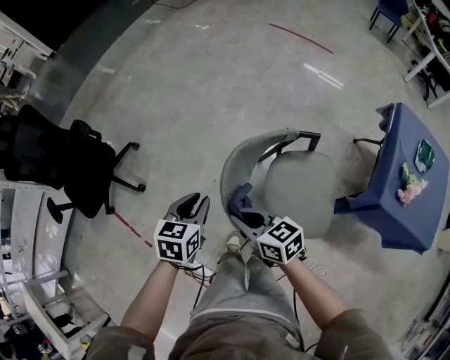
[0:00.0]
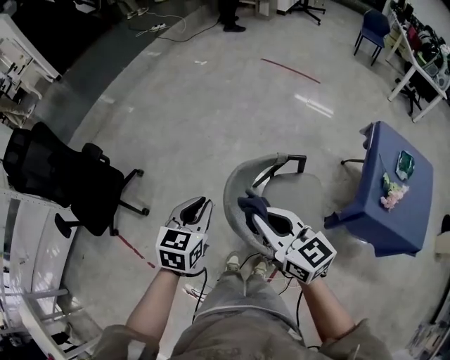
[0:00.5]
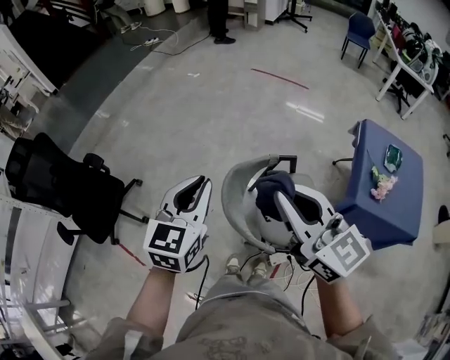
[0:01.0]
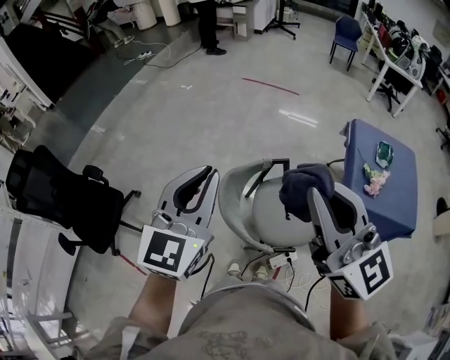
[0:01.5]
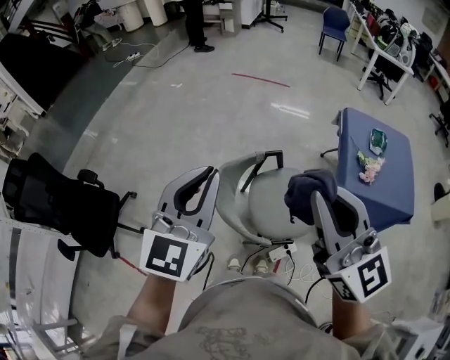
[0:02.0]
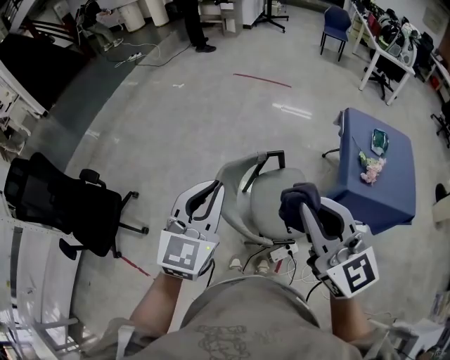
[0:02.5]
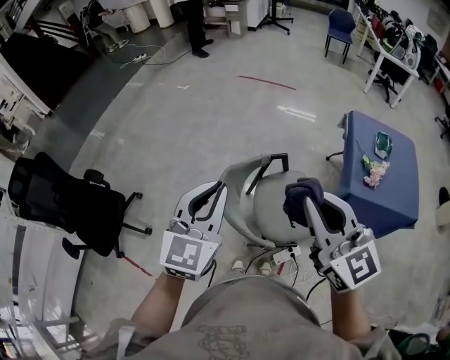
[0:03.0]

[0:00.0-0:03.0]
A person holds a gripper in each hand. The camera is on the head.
0:00.0 to 0:01.5: Both grippers move upward, about 40 cm. The right gripper points its fingers some 30 degrees further upward. The left gripper points its fingers roughly 40 degrees further upward.
0:01.5 to 0:03.0: The two grippers go some 5 cm downward.

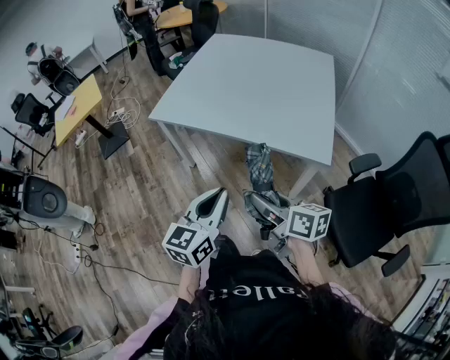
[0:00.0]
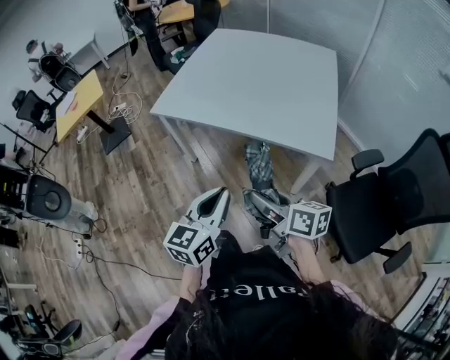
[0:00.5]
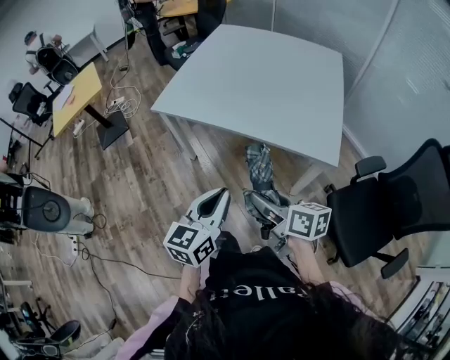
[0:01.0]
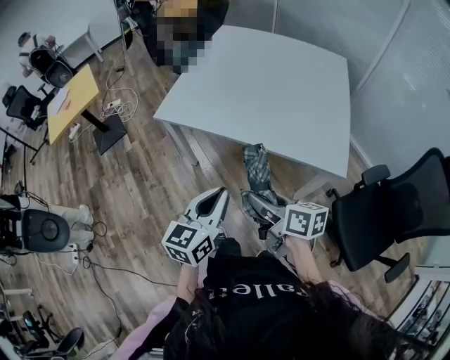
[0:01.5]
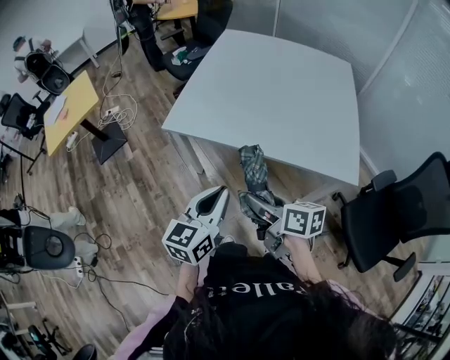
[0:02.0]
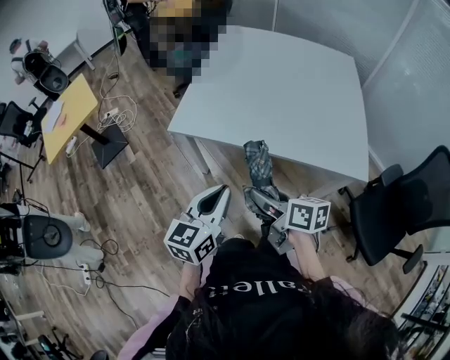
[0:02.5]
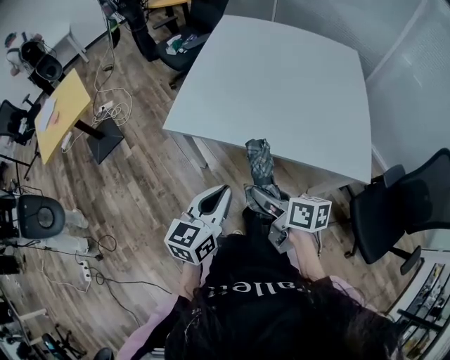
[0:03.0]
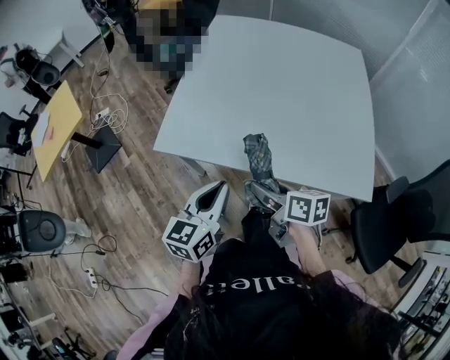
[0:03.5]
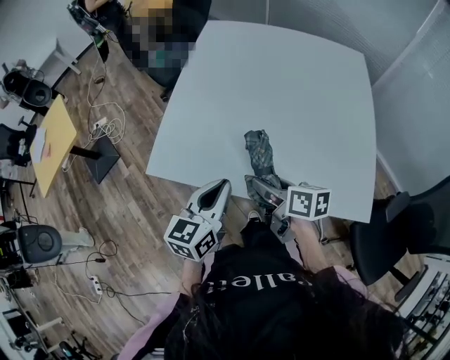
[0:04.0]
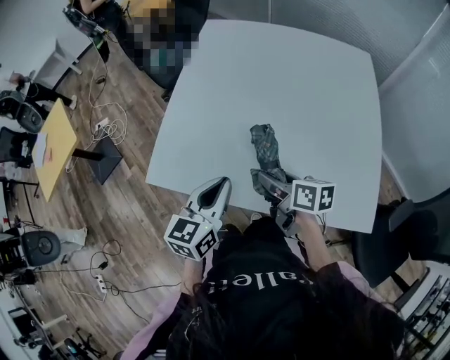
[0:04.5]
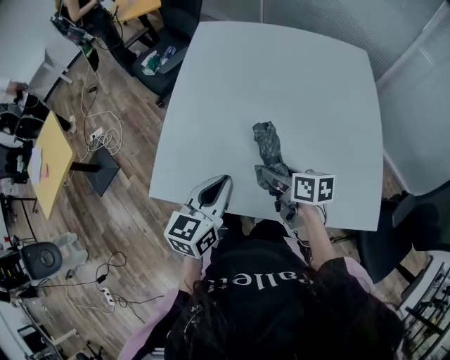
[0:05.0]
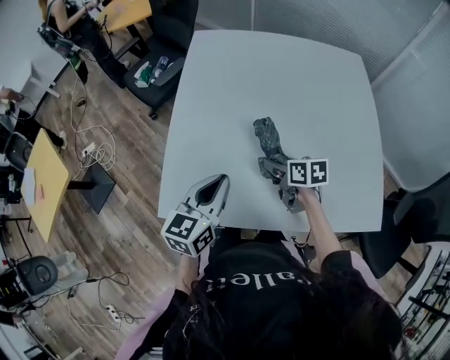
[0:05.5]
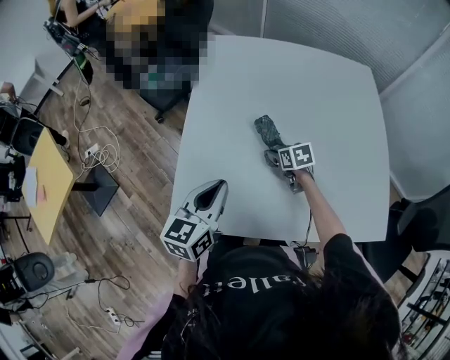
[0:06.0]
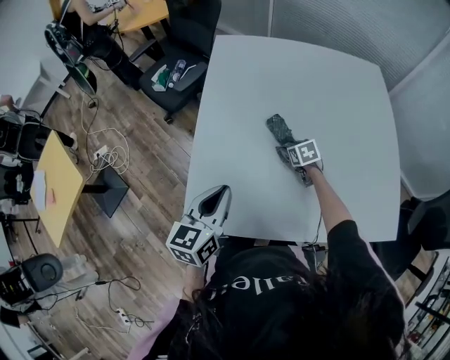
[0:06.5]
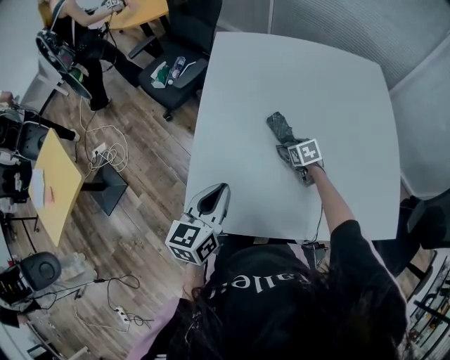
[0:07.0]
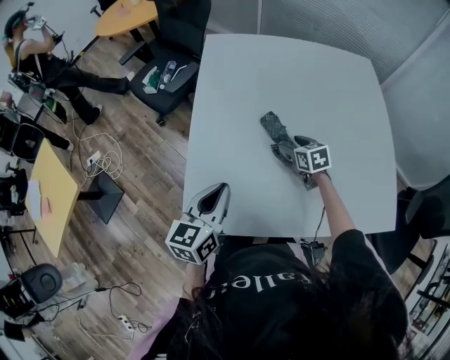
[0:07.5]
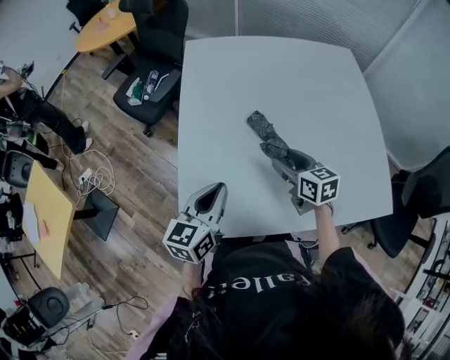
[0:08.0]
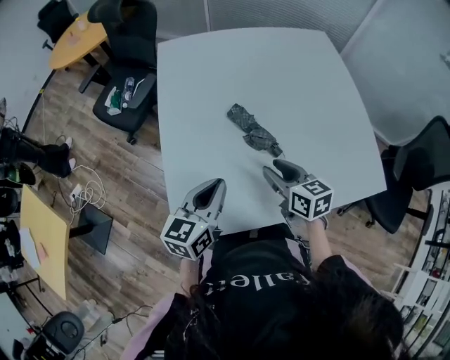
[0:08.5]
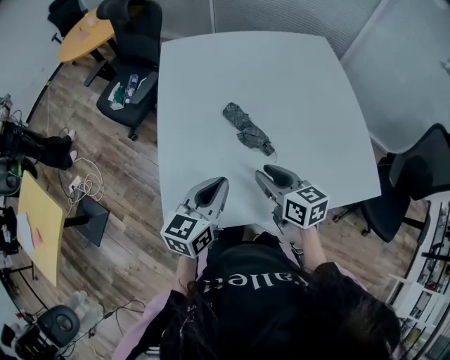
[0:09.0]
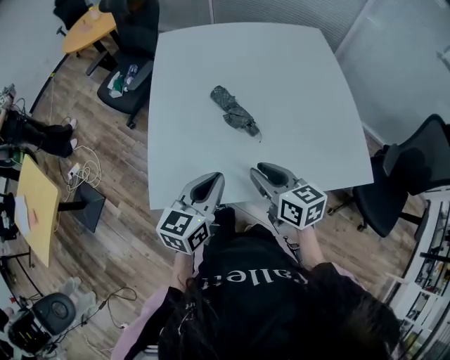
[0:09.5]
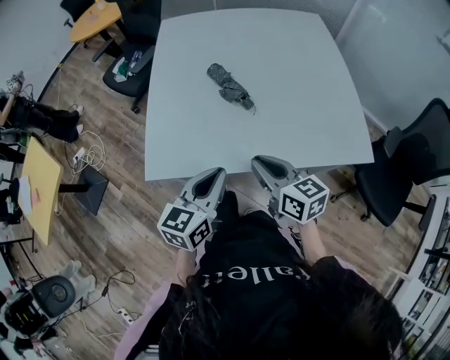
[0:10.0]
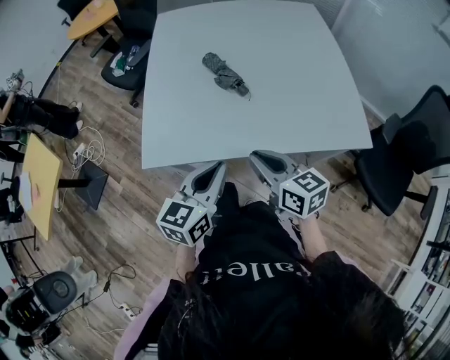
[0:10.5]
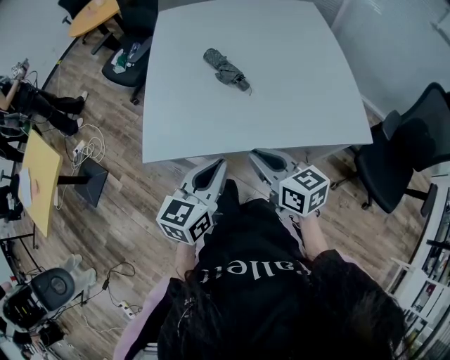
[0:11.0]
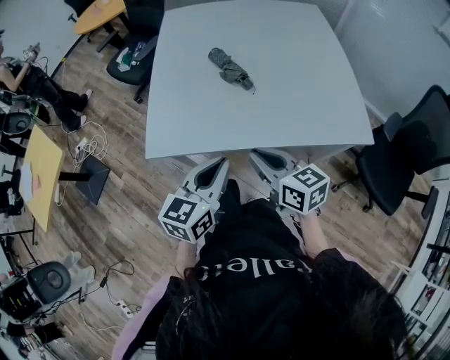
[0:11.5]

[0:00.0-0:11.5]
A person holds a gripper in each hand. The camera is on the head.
0:00.0 to 0:02.0: The left gripper is displaced forward and to the left by about 20 cm. Meanwhile the right gripper is displaced to the left and forward by about 20 cm.
0:02.0 to 0:04.0: Both grippers travel together forward, approximately 25 cm.
0:04.0 to 0:06.0: The right gripper shifts roughly 30 cm forward and downward, and changes its angle by approximately 40 degrees, while the left gripper is displaced forward and to the left by approximately 20 cm.
0:06.0 to 0:07.5: The grippers move only a little.
0:07.5 to 0:09.5: The right gripper travels backward and upward by approximately 30 cm, turns by some 30 degrees, and closes; the left gripper travels to the right and backward by some 15 cm.
0:09.5 to 0:11.5: The two grippers go roughly 15 cm backward.

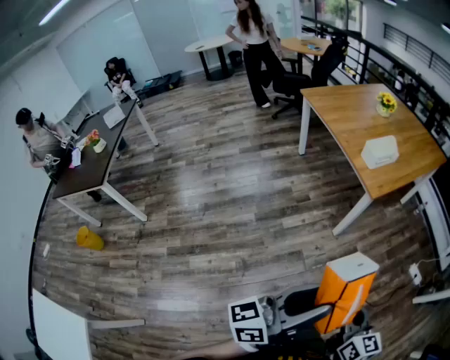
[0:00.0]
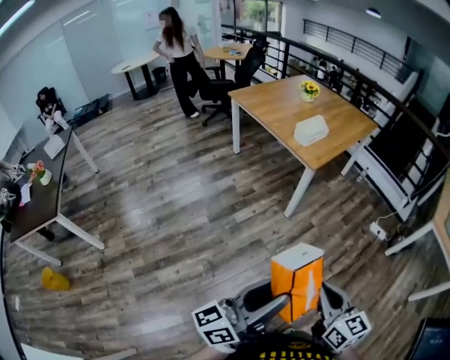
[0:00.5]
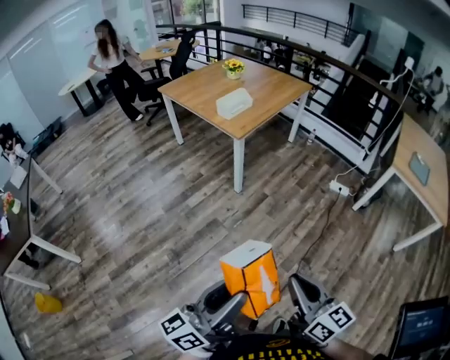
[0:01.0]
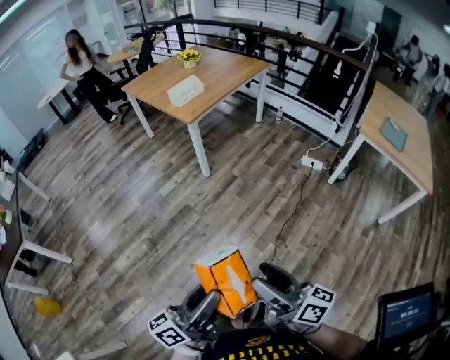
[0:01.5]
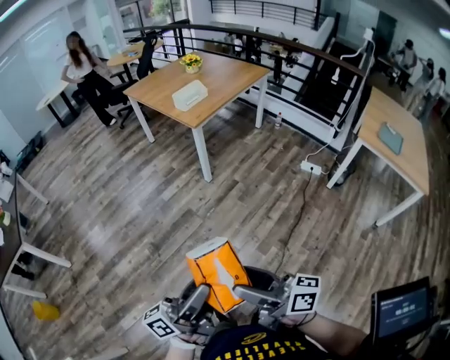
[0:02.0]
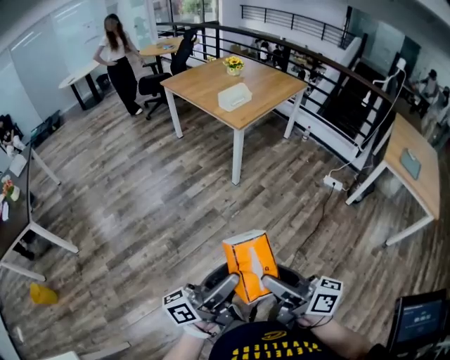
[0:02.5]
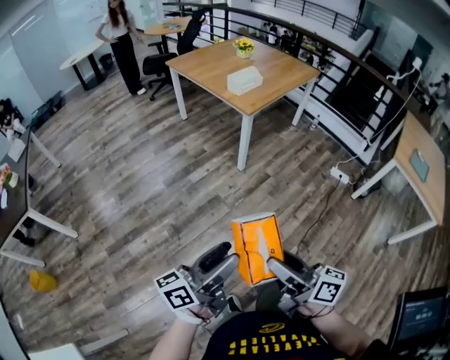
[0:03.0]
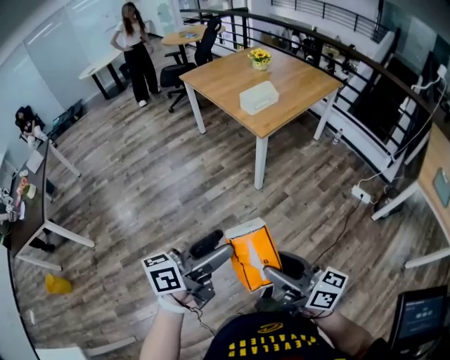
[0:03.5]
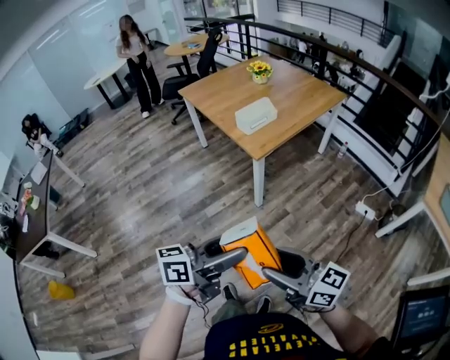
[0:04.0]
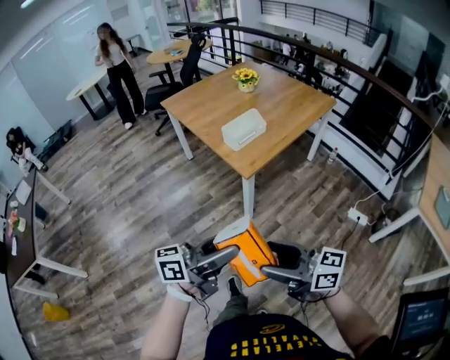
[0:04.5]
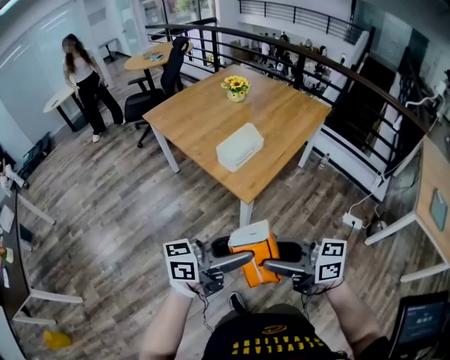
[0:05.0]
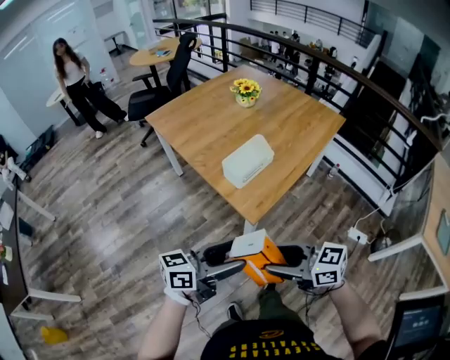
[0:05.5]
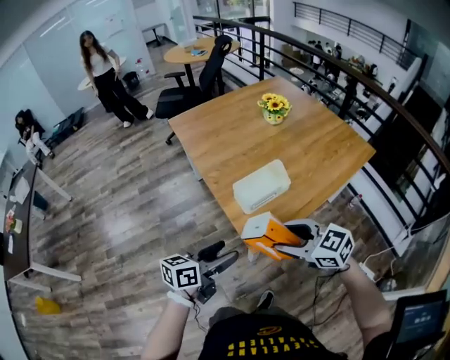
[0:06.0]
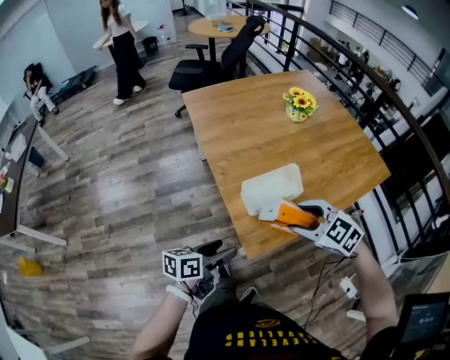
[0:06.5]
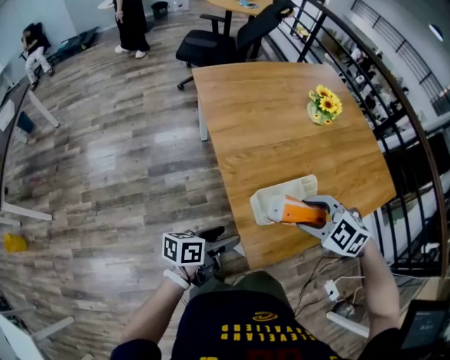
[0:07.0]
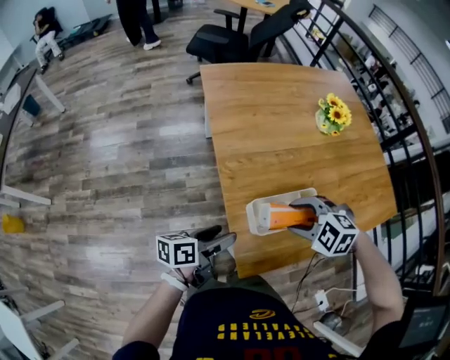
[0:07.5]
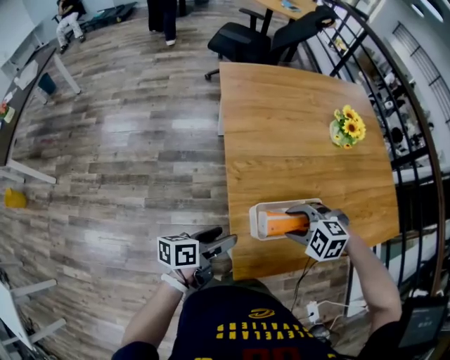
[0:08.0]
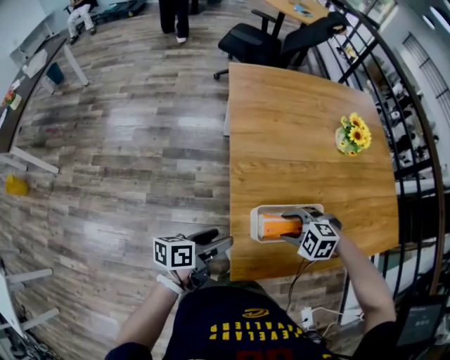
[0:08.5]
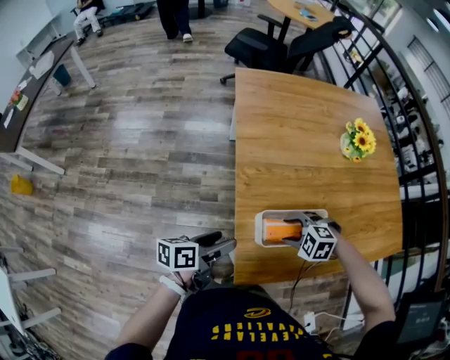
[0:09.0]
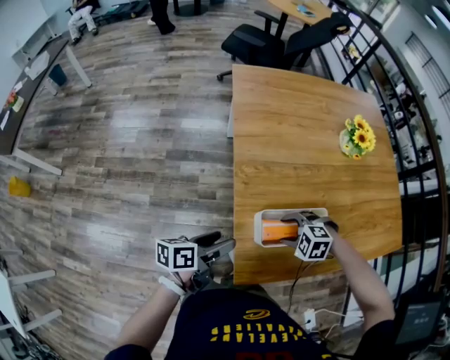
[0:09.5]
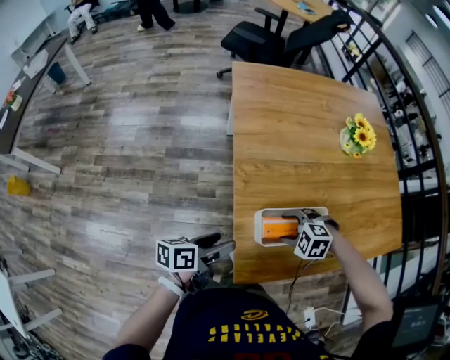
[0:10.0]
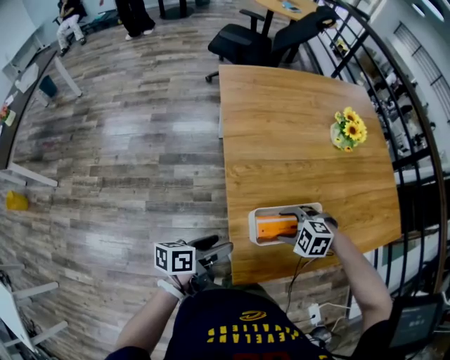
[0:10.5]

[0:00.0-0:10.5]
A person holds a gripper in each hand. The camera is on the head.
0:00.0 to 0:02.0: The grippers both shift backward and to the right by some 35 cm. The right gripper changes its angle by roughly 50 degrees, and opens its fingers.
0:02.0 to 0:04.0: The two grippers go roughly 35 cm forward. The left gripper changes its angle by roughly 30 degrees, and opens up, while the right gripper changes its angle by approximately 30 degrees.
0:04.0 to 0:06.5: The pair of grippers is taken approximately 60 cm. The left gripper changes its angle by some 30 degrees, while the right gripper angles its fingers downward, by about 50 degrees.
0:06.5 to 0:08.5: The right gripper goes approximately 15 cm downward, and changes its angle by approximately 40 degrees, while the left gripper changes place by some 10 cm, and swivels approximately 20 degrees.
0:08.5 to 0:10.5: There are only small adjustments of the grippers.

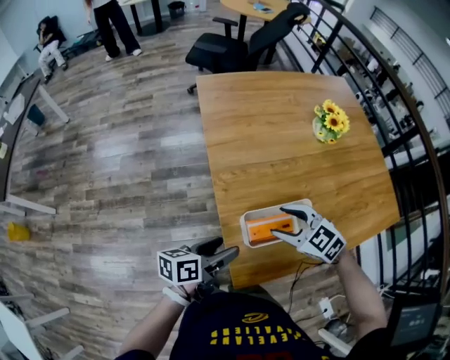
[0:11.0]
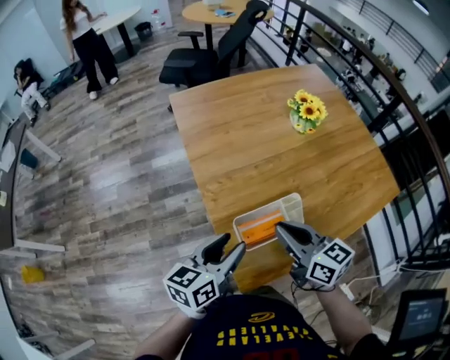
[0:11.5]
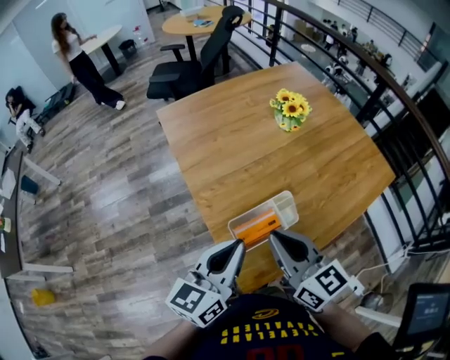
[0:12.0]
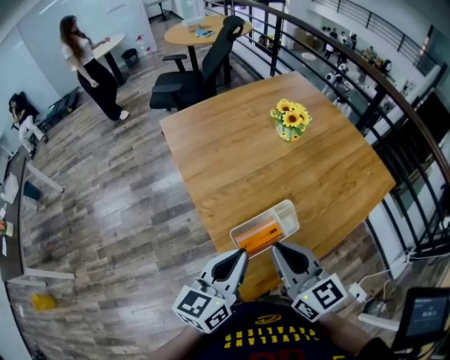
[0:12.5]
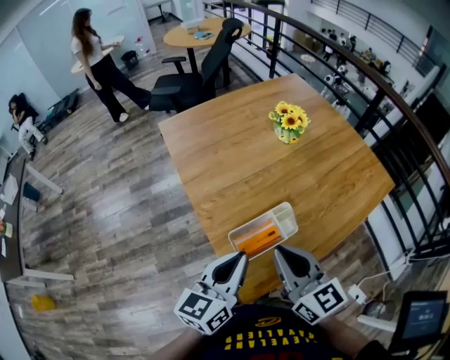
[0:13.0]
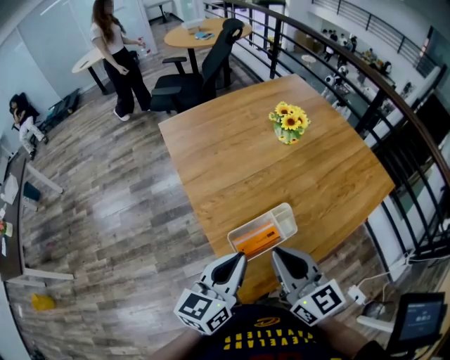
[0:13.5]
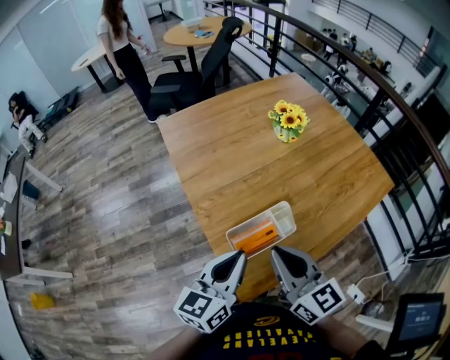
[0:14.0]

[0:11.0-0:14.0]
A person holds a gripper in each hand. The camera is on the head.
0:11.0 to 0:12.5: The right gripper heads upward and backward, covering some 15 cm, points its fingers some 30 degrees further upward, and closes; the left gripper is displaced upward and to the right by roughly 20 cm, rotates roughly 40 degrees, and closes its fingers.
0:12.5 to 0:14.0: Both grippers stay put.
